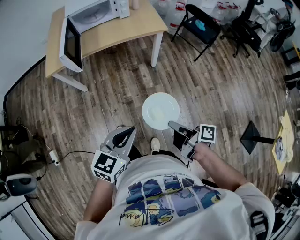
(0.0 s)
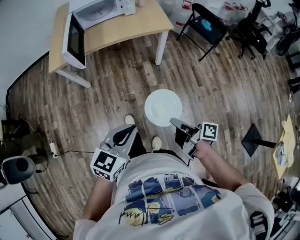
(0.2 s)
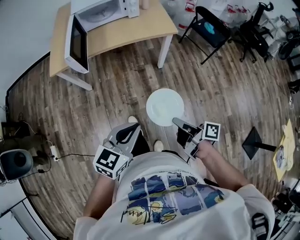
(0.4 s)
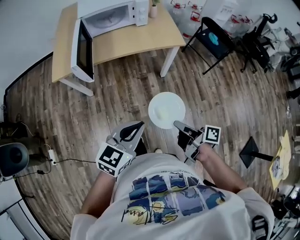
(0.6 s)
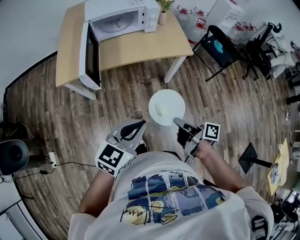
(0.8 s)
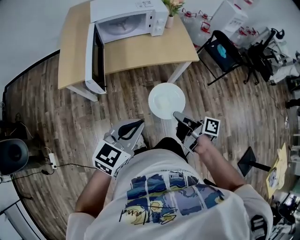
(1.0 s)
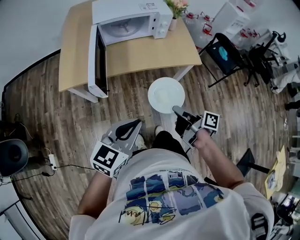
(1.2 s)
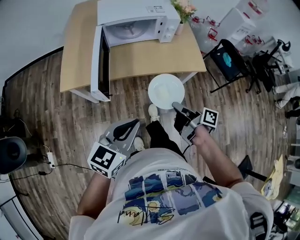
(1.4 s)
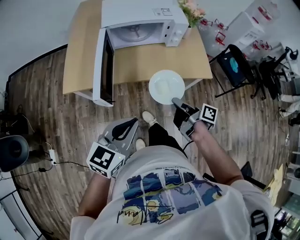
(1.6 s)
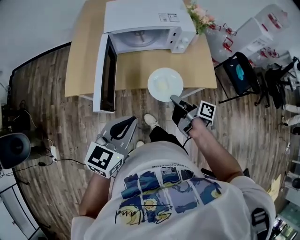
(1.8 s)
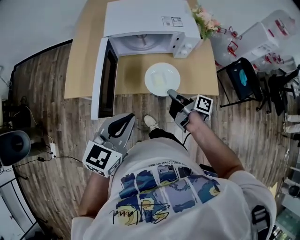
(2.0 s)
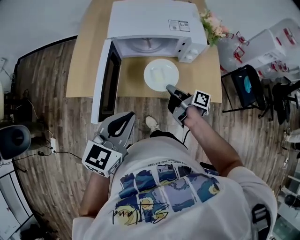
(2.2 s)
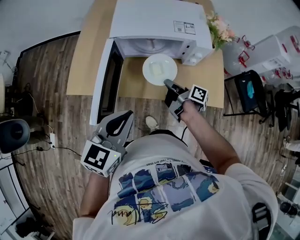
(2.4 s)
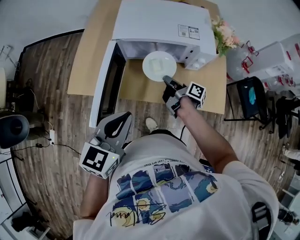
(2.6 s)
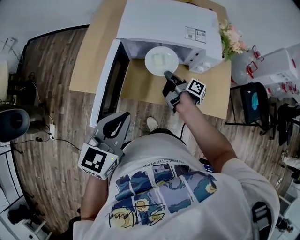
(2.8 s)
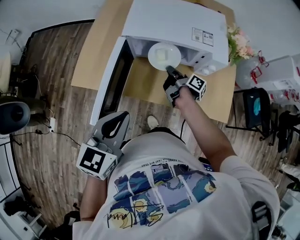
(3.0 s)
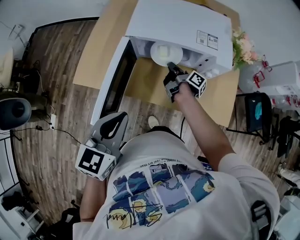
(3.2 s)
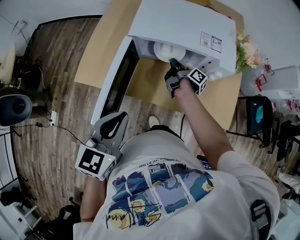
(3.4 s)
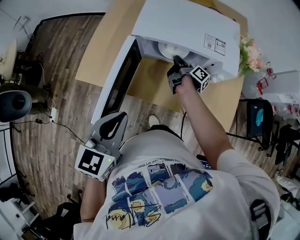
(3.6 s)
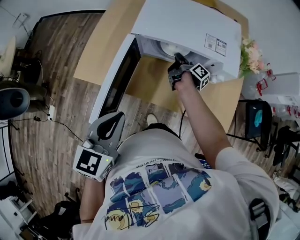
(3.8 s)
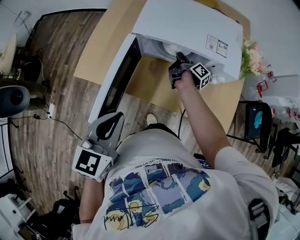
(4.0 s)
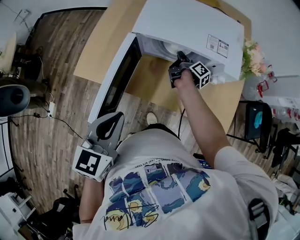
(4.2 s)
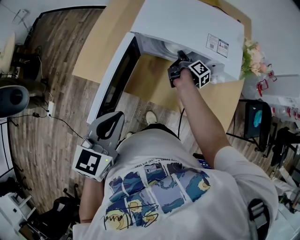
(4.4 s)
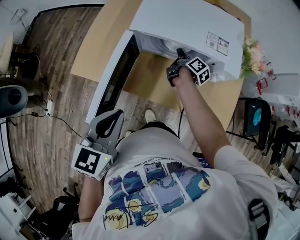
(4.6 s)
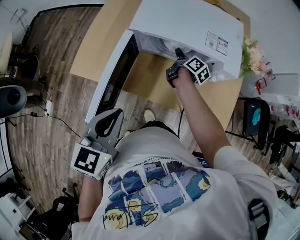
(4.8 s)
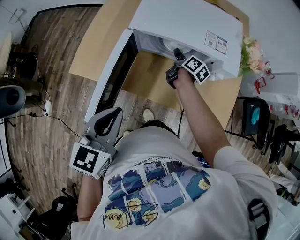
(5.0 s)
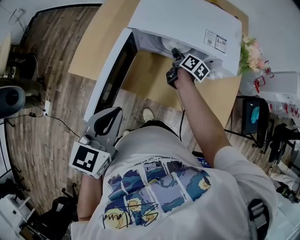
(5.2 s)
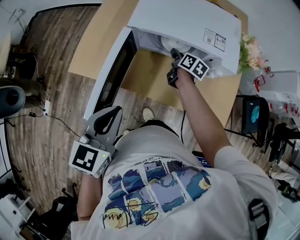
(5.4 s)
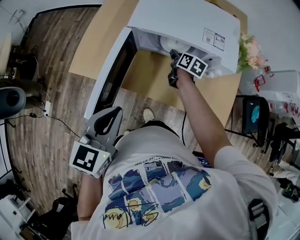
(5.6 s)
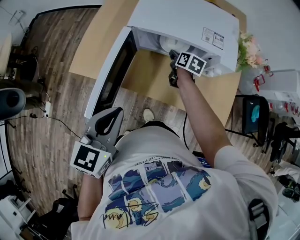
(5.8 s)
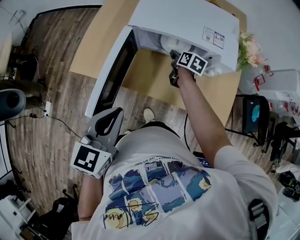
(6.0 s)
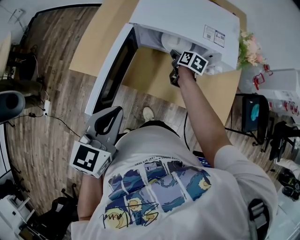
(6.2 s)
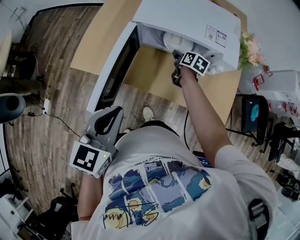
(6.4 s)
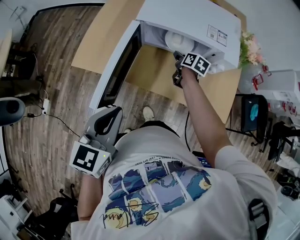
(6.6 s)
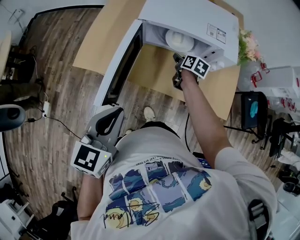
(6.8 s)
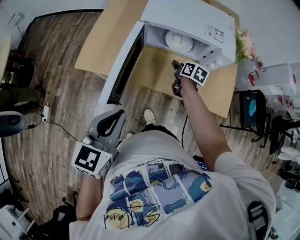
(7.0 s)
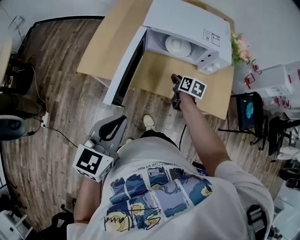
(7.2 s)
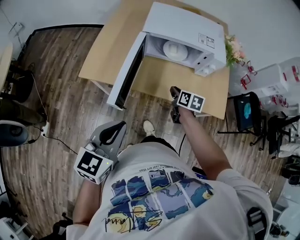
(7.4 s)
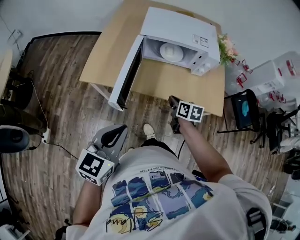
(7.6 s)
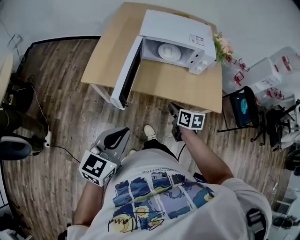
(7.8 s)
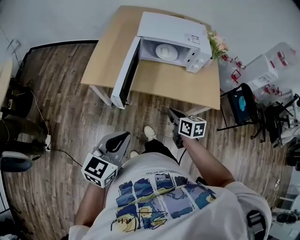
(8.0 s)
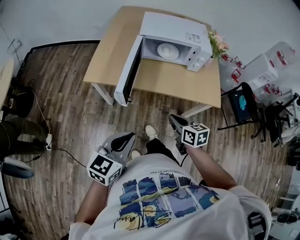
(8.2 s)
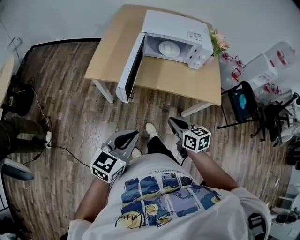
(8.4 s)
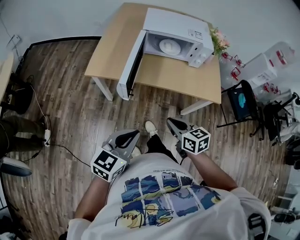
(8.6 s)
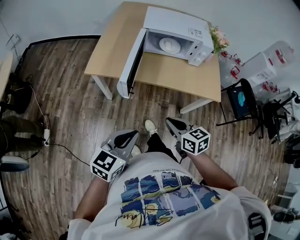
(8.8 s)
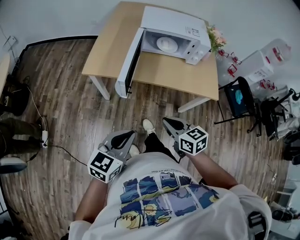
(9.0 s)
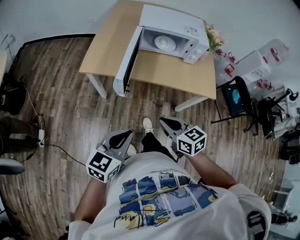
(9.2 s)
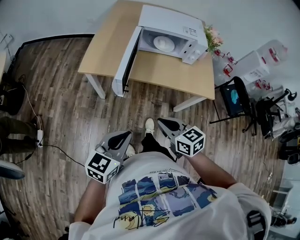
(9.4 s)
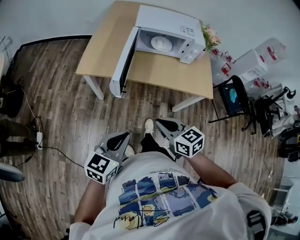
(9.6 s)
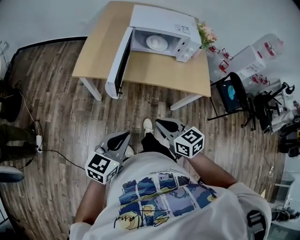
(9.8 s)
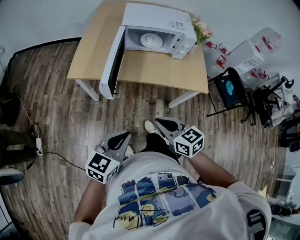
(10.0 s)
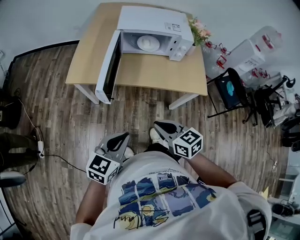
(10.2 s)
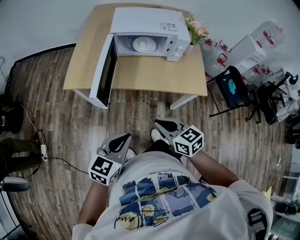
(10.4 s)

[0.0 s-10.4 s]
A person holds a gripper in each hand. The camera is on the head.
0.0 to 1.4 s: The right gripper goes about 35 cm forward, while the left gripper travels forward and to the left by approximately 30 cm.
1.4 to 3.0 s: The left gripper is displaced forward by some 20 cm, and changes its angle by approximately 30 degrees. Meanwhile the right gripper is displaced forward by roughly 40 cm.
3.0 to 4.4 s: The right gripper goes about 10 cm forward.
4.4 to 6.0 s: The right gripper rotates around the line of its fingers by about 40 degrees, counterclockwise from behind, and opens.
6.0 to 7.4 s: The left gripper heads backward and to the left, covering about 15 cm; the right gripper heads backward, covering about 20 cm, and closes up.
7.4 to 9.0 s: The right gripper travels backward by some 30 cm, and swivels roughly 30 degrees. Meanwhile the left gripper moves backward, approximately 15 cm.
9.0 to 10.4 s: The grippers both shift to the right by roughly 5 cm.

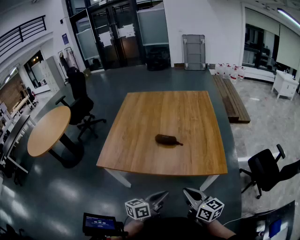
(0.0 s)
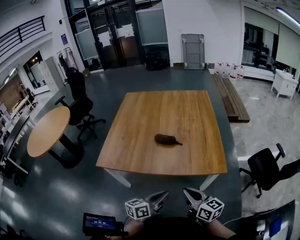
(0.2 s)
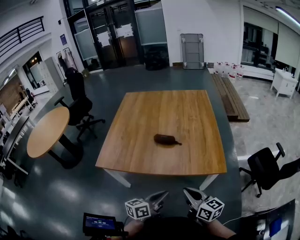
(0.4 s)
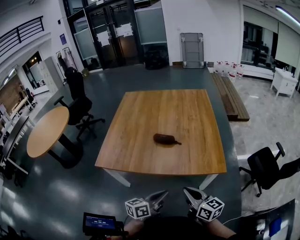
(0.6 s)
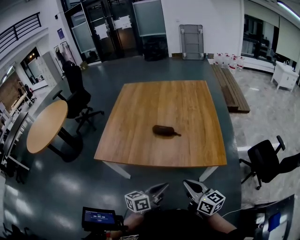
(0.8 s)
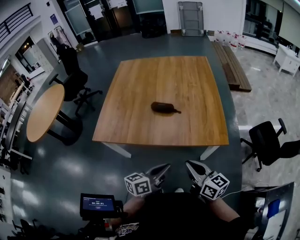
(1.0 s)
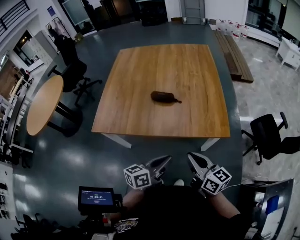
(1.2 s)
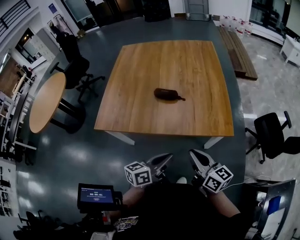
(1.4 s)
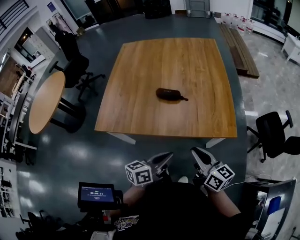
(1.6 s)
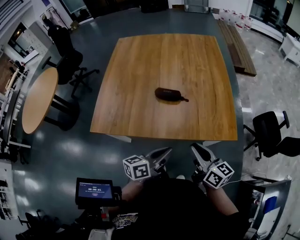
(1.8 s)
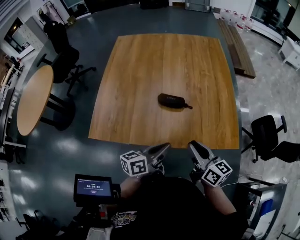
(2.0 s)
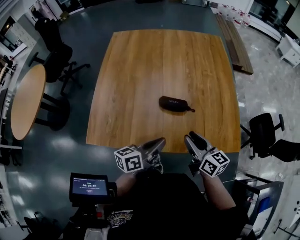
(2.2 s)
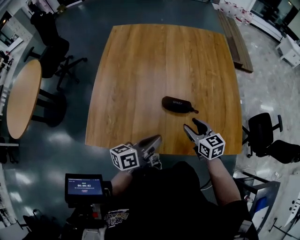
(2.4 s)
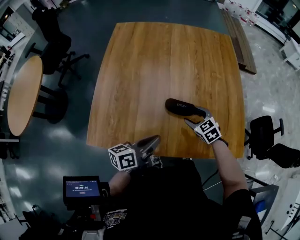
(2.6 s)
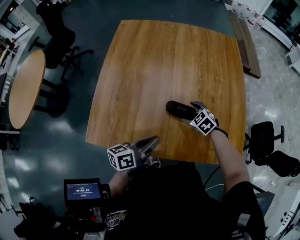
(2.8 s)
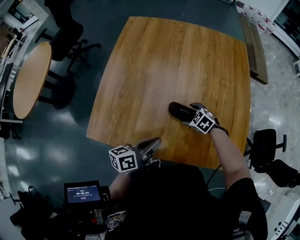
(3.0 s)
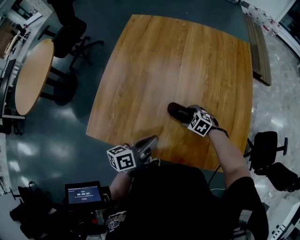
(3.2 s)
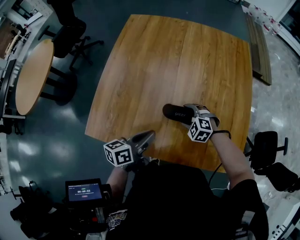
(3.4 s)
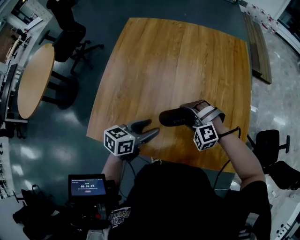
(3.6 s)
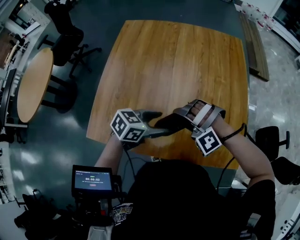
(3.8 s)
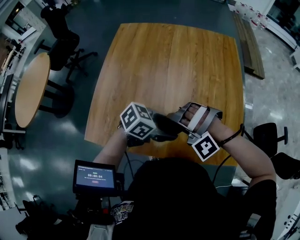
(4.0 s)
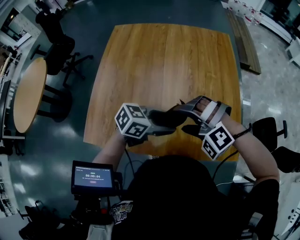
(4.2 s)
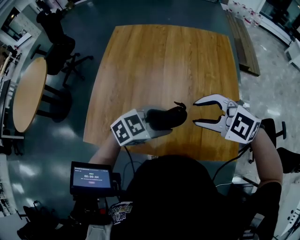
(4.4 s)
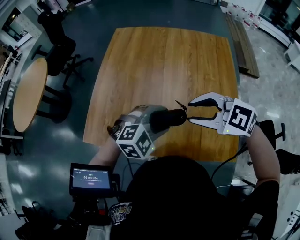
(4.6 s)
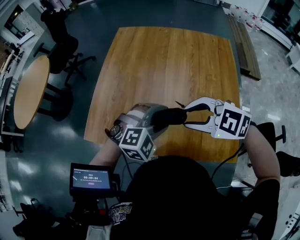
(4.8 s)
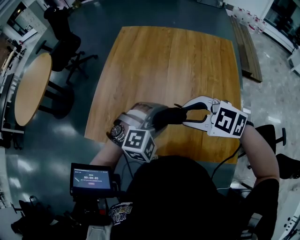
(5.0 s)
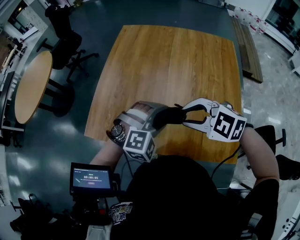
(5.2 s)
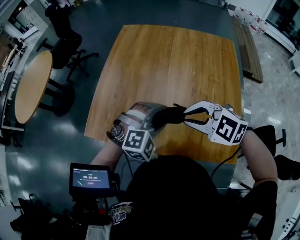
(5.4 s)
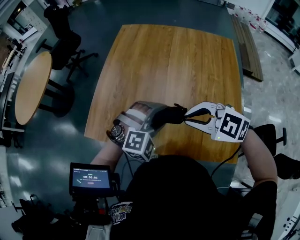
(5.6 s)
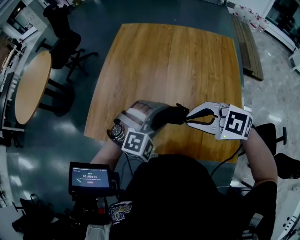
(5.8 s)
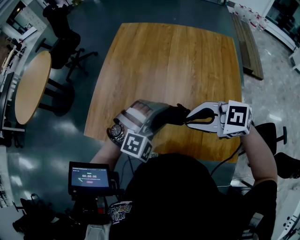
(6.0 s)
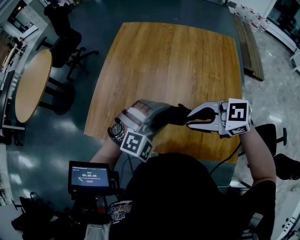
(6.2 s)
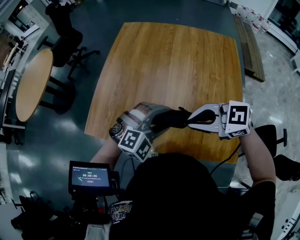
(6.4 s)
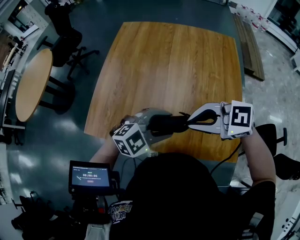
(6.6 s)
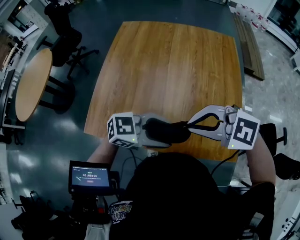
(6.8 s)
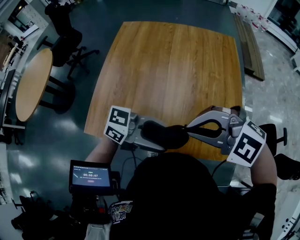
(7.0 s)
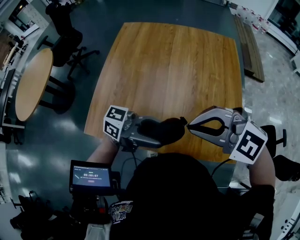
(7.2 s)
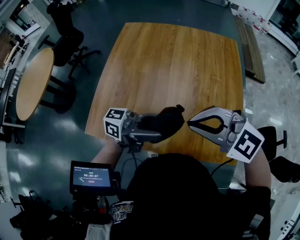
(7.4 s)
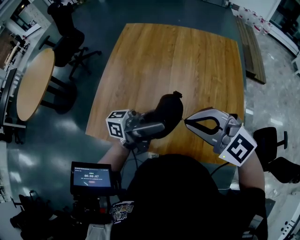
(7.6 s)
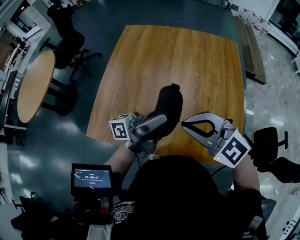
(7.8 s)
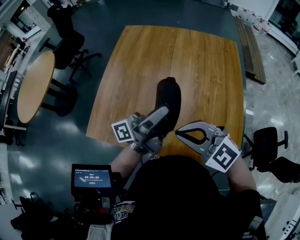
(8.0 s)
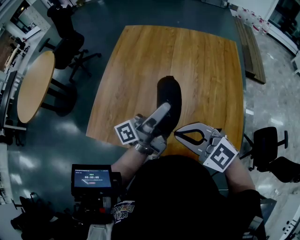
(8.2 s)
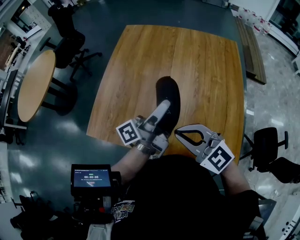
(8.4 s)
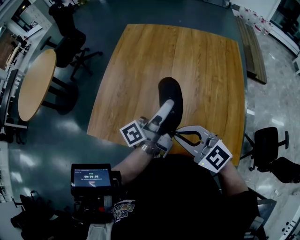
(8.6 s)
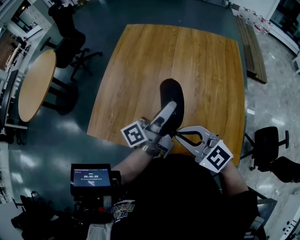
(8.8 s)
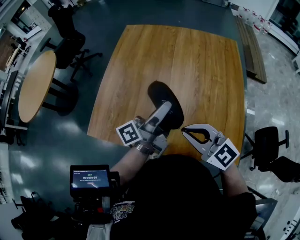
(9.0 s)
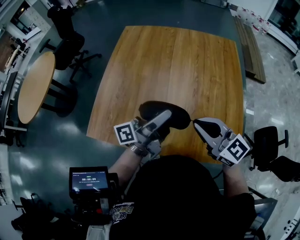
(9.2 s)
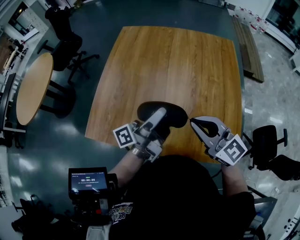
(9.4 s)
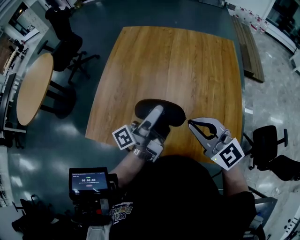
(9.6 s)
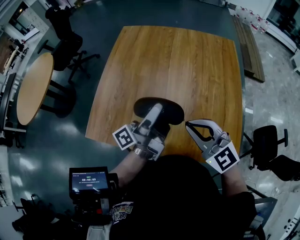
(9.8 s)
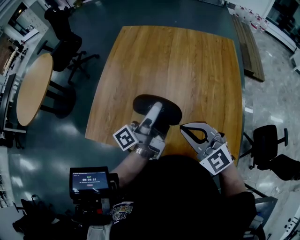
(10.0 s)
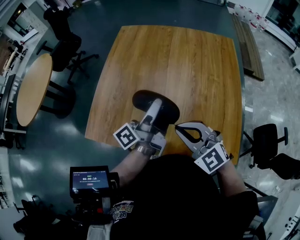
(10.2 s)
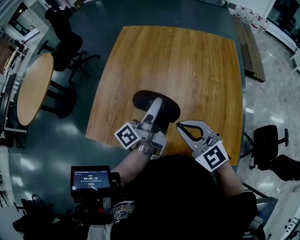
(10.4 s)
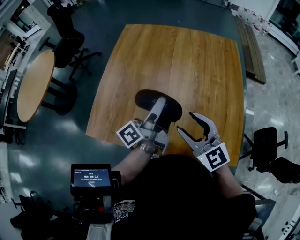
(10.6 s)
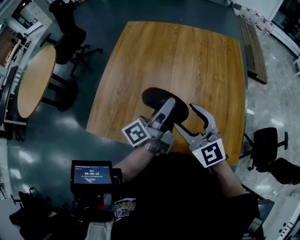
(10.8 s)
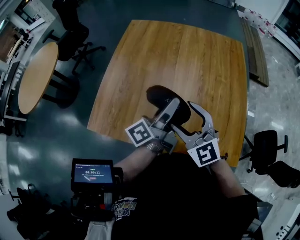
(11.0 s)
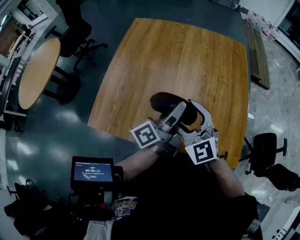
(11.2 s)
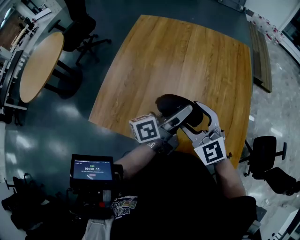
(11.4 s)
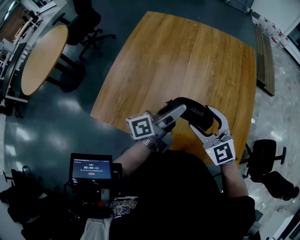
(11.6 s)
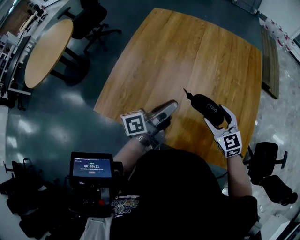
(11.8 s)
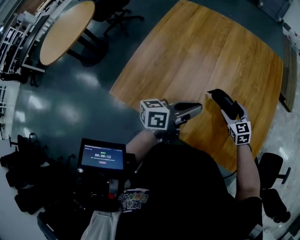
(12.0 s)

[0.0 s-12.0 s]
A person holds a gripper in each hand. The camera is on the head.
0.0 to 1.6 s: The grippers stay close to where they were, moving slightly.
1.6 to 3.0 s: The left gripper heads forward and to the left, covering roughly 25 cm. The right gripper is displaced forward and downward by about 40 cm, points its fingers approximately 60 degrees further downward, and opens up.
3.0 to 4.4 s: The right gripper goes about 30 cm upward, changes its angle by some 40 degrees, and closes its fingers. The left gripper changes place by approximately 10 cm, twists some 60 degrees clockwise, seen from behind, and opens up.
4.4 to 6.0 s: The right gripper turns by some 30 degrees, and closes its fingers. The left gripper rolls clockwise, seen from behind, by roughly 50 degrees.
6.0 to 7.6 s: The right gripper goes approximately 5 cm upward, and rotates approximately 30 degrees. The left gripper heads upward, covering approximately 10 cm, and angles its fingers upward, by roughly 70 degrees.
7.6 to 9.0 s: The right gripper moves downward, about 5 cm, and swivels roughly 30 degrees. The left gripper shifts by some 10 cm, and turns by roughly 40 degrees.
10.4 to 12.0 s: The right gripper is displaced downward, to the right and forward by about 25 cm, turns by approximately 30 degrees, and opens up; the left gripper shifts some 10 cm downward and backward, changes its angle by approximately 40 degrees, and closes up.

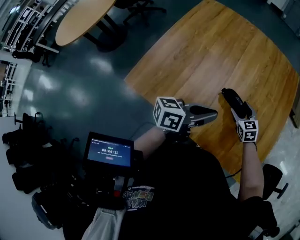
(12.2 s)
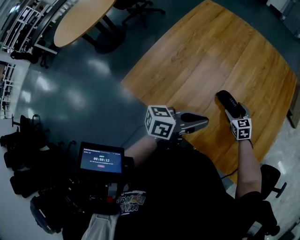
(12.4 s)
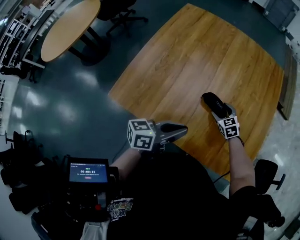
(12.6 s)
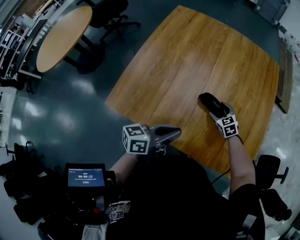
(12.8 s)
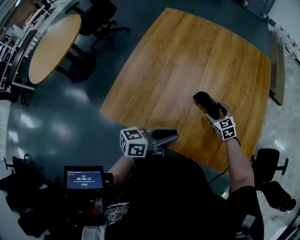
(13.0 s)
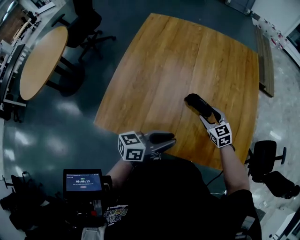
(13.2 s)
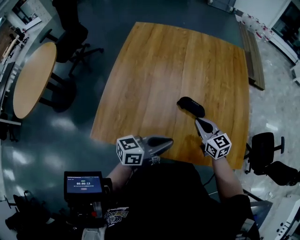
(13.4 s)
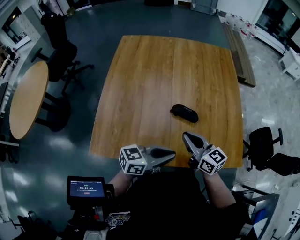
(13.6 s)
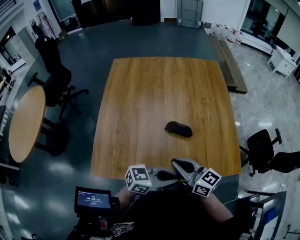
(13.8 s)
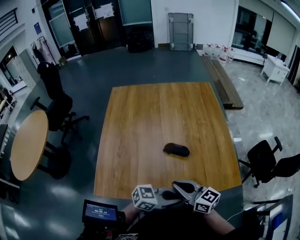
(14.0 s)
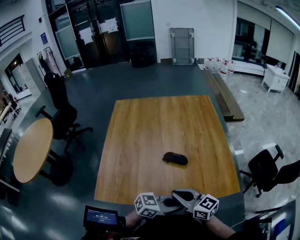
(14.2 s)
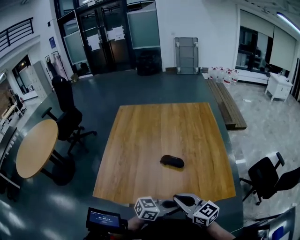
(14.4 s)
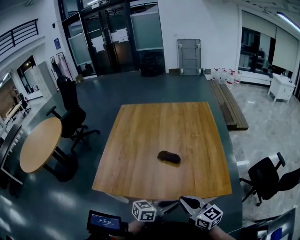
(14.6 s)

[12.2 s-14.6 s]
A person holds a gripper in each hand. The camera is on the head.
12.2 to 13.4 s: The left gripper moves backward, approximately 5 cm, while the right gripper moves upward and backward, approximately 15 cm, turns by roughly 30 degrees, and closes its fingers.
13.4 to 14.6 s: The left gripper shifts by about 20 cm, while the right gripper changes place by some 25 cm.
